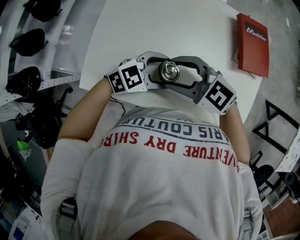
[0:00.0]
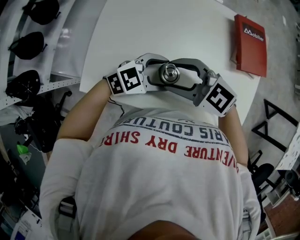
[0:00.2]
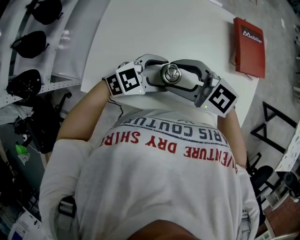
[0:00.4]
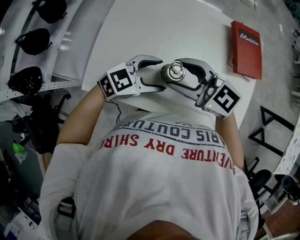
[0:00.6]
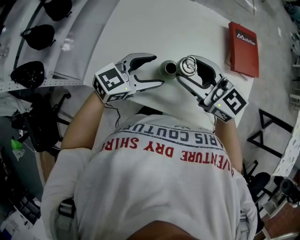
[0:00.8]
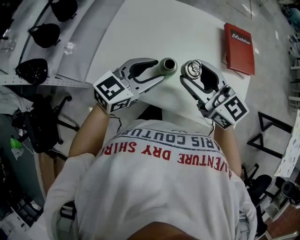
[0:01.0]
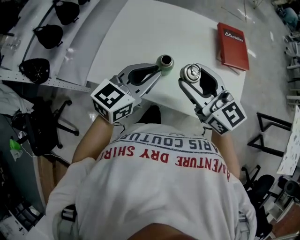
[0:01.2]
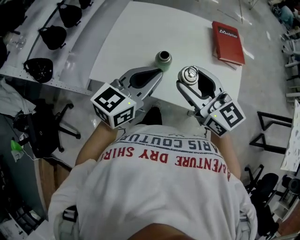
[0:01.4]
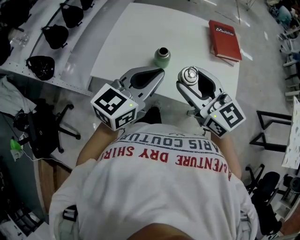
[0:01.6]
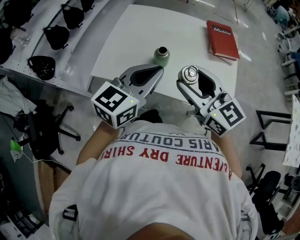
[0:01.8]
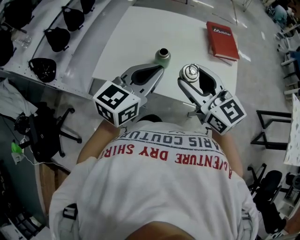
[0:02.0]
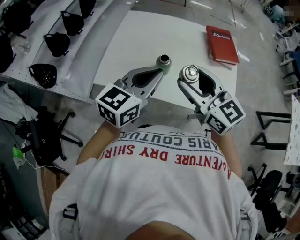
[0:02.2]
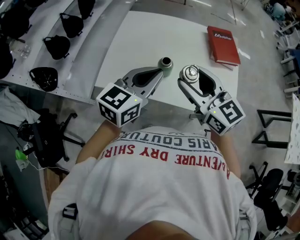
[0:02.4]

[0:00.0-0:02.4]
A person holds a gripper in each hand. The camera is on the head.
0:00.0 to 0:01.2: Both grippers travel together upward, approximately 15 cm. The right gripper turns by roughly 40 degrees; the left gripper changes its angle by some 40 degrees, and closes its fingers.
0:01.2 to 0:02.4: The left gripper moves upward, approximately 5 cm; the right gripper changes place by some 5 cm.

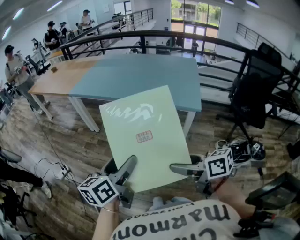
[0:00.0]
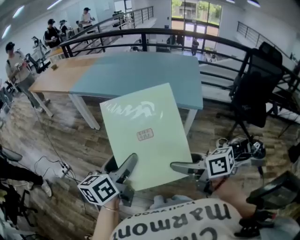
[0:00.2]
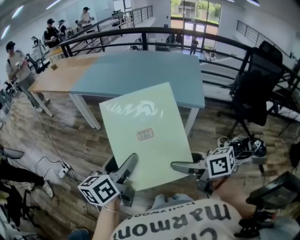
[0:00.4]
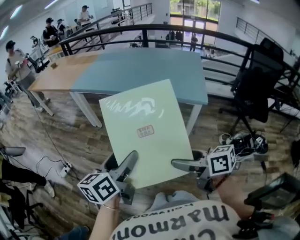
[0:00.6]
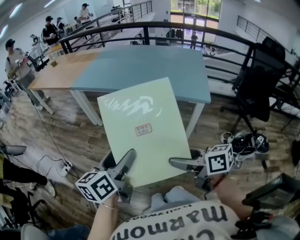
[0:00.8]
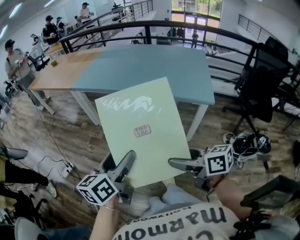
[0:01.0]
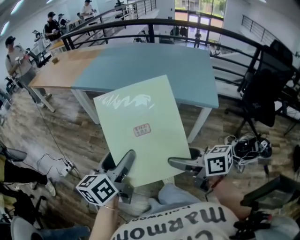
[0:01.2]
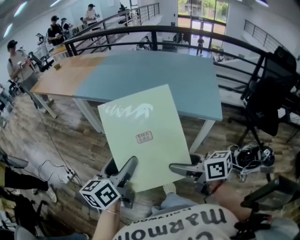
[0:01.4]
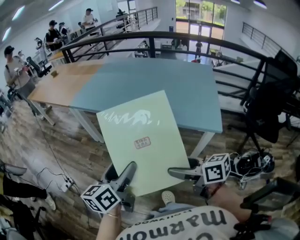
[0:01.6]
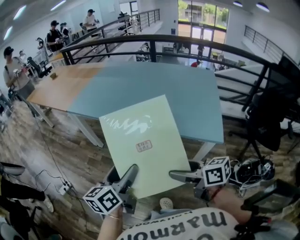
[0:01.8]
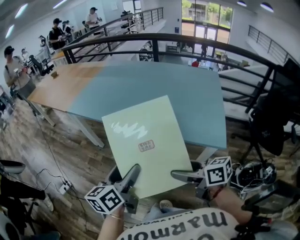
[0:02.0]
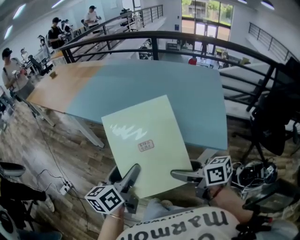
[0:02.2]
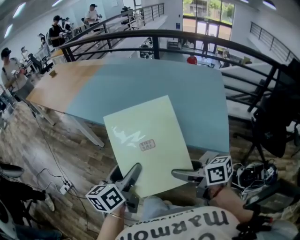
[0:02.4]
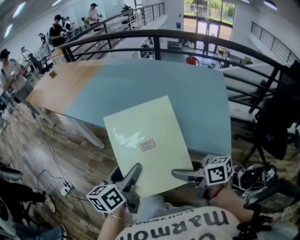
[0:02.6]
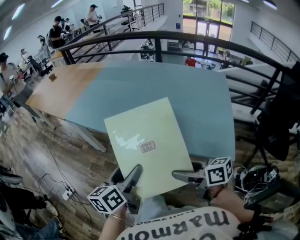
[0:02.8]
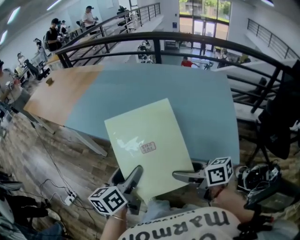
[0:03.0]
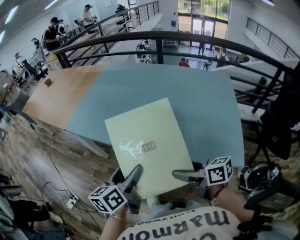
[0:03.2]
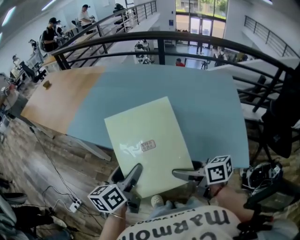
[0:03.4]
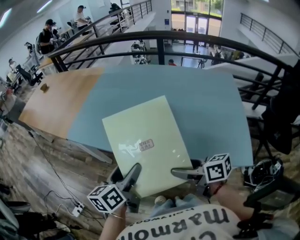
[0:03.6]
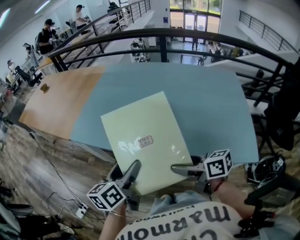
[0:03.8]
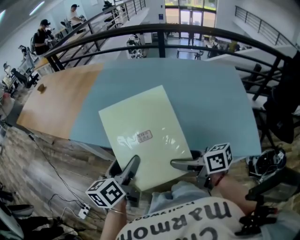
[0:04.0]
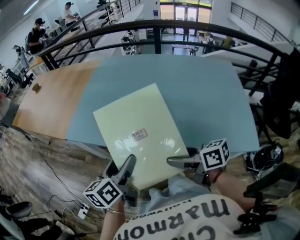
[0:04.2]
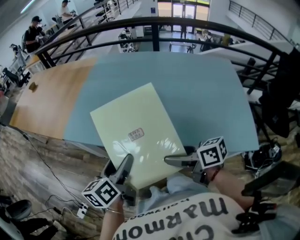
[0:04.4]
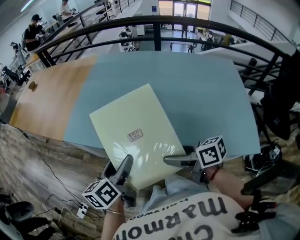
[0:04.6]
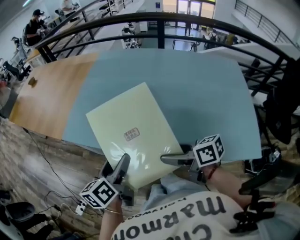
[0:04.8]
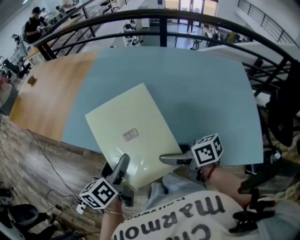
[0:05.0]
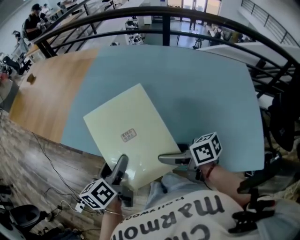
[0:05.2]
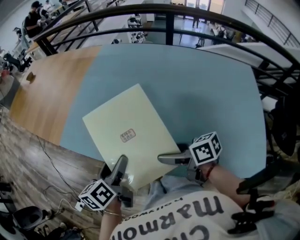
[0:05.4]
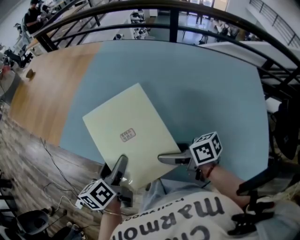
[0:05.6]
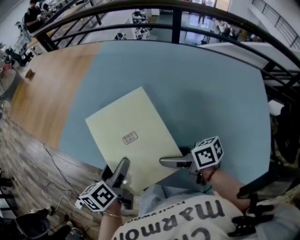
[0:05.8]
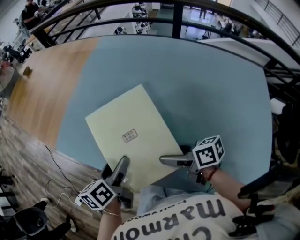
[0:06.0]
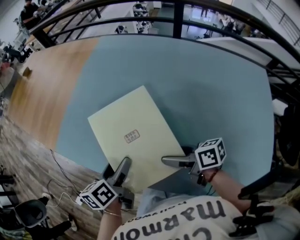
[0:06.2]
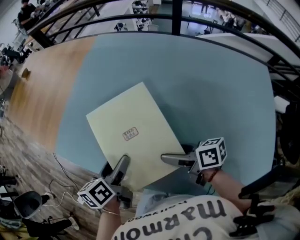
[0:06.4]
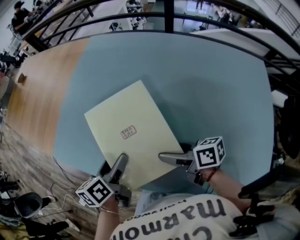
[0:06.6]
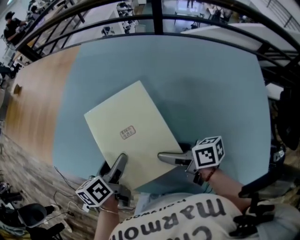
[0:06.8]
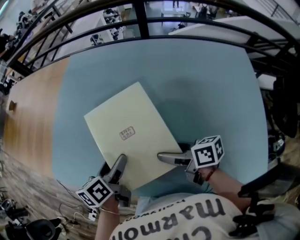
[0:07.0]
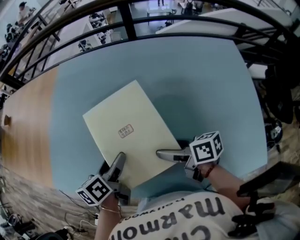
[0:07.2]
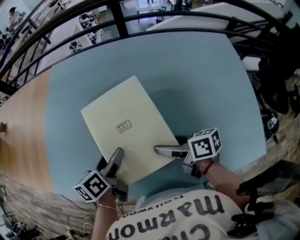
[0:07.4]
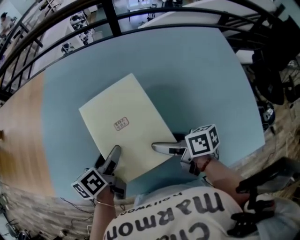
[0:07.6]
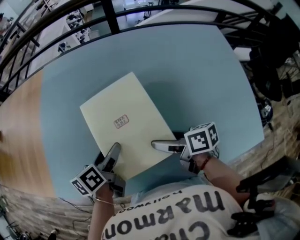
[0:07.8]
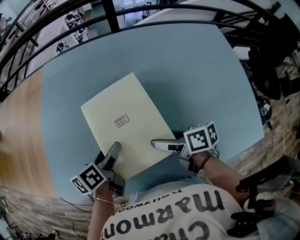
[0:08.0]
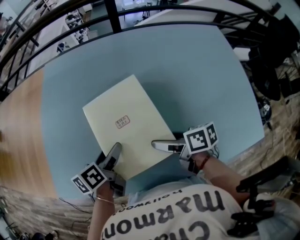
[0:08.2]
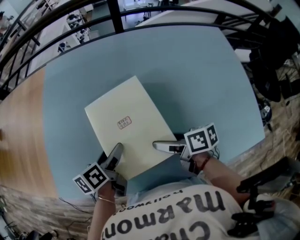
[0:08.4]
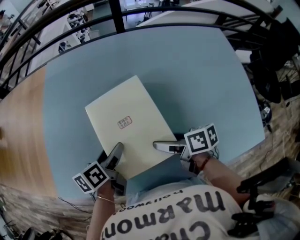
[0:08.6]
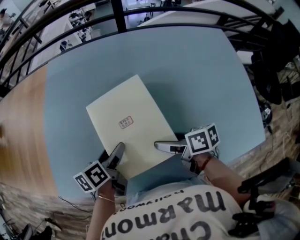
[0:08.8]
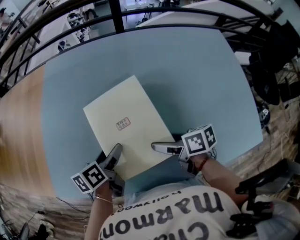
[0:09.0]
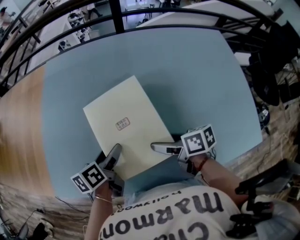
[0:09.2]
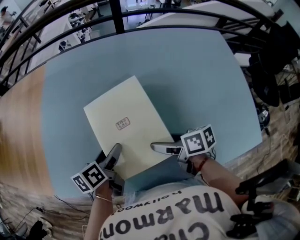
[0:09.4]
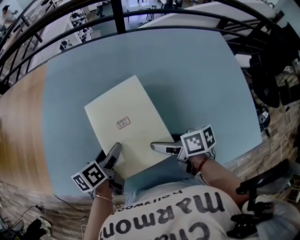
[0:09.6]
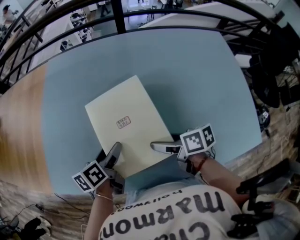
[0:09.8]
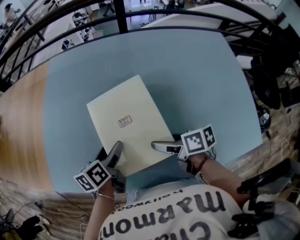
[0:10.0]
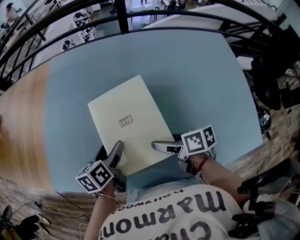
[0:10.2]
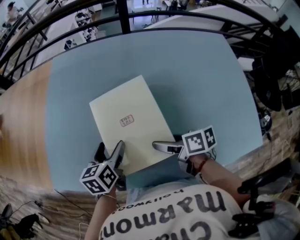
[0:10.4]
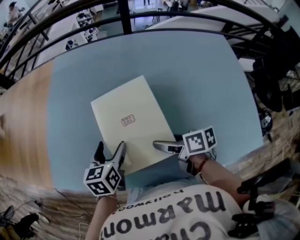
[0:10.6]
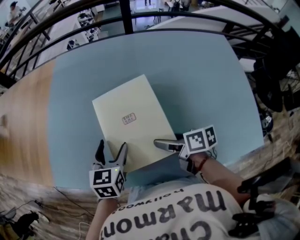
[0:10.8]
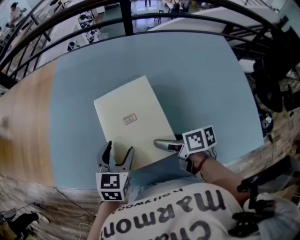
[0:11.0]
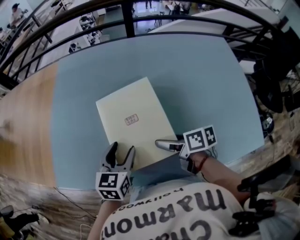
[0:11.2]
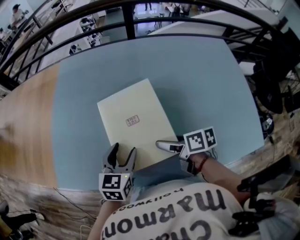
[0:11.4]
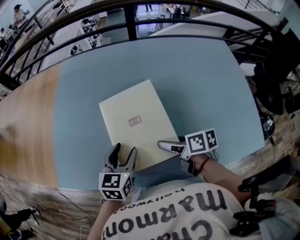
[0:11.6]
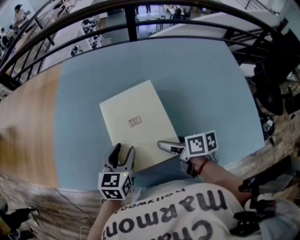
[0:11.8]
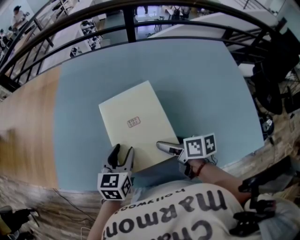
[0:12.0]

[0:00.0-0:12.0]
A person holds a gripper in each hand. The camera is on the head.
0:00.0 to 0:01.6: Both grippers travel together forward, about 20 cm.
0:01.6 to 0:03.0: Both grippers travel together forward, some 20 cm.
0:03.0 to 0:04.4: The two grippers go approximately 20 cm forward and to the left.
0:04.4 to 0:06.0: Both grippers travel together forward and downward, roughly 20 cm.
0:06.0 to 0:07.6: The left gripper moves roughly 10 cm, and changes its angle by roughly 30 degrees, while the right gripper moves some 5 cm, and rotates roughly 30 degrees.
0:07.6 to 0:09.0: The grippers stay close to where they were, moving slightly.
0:09.0 to 0:10.4: The left gripper swivels roughly 20 degrees.
0:10.4 to 0:12.0: The left gripper turns by some 20 degrees, and closes.

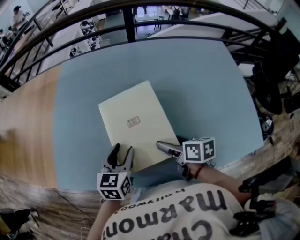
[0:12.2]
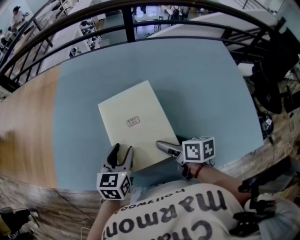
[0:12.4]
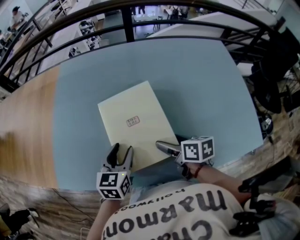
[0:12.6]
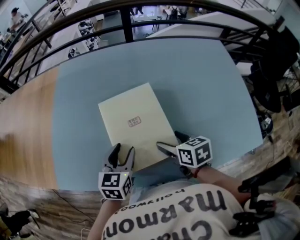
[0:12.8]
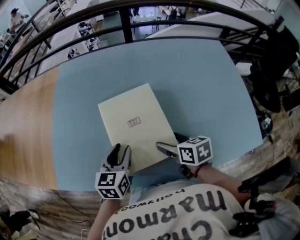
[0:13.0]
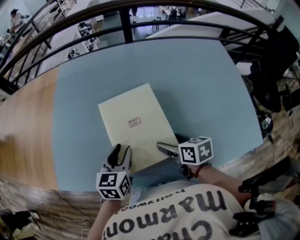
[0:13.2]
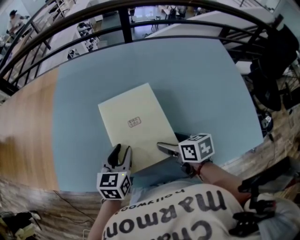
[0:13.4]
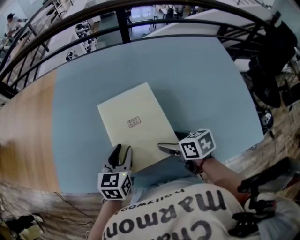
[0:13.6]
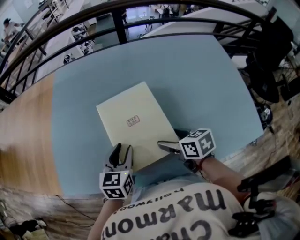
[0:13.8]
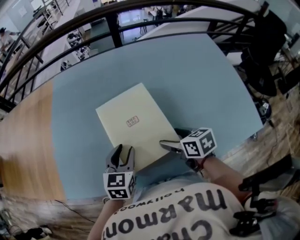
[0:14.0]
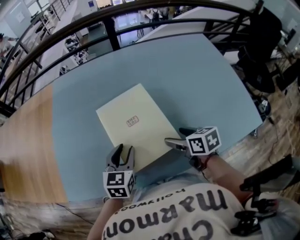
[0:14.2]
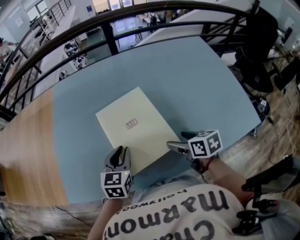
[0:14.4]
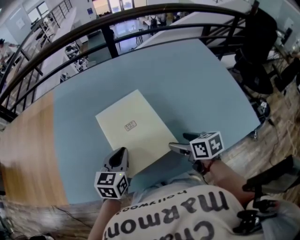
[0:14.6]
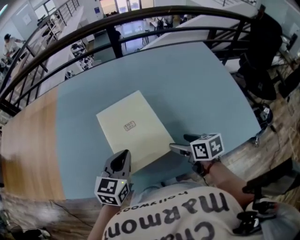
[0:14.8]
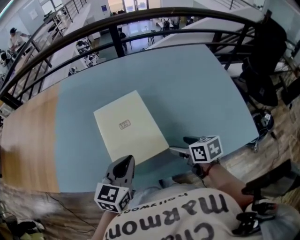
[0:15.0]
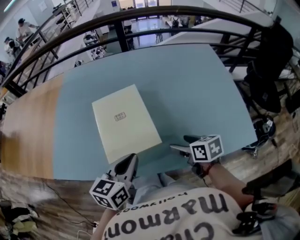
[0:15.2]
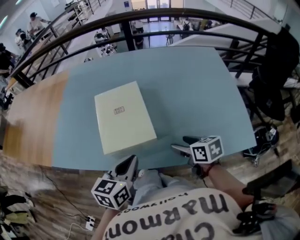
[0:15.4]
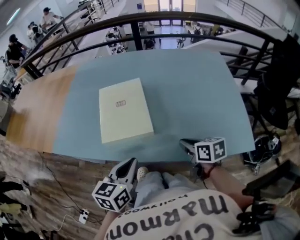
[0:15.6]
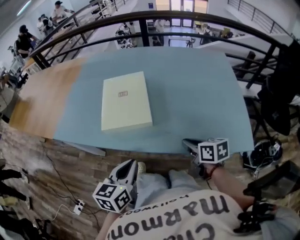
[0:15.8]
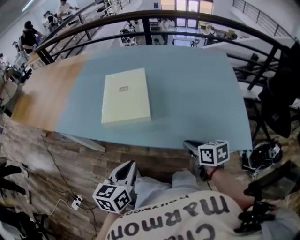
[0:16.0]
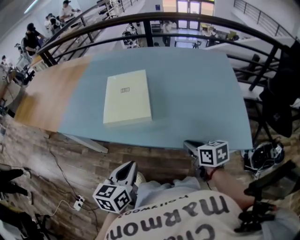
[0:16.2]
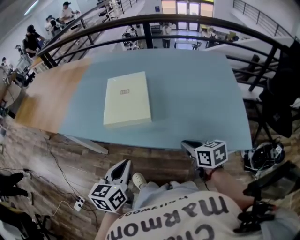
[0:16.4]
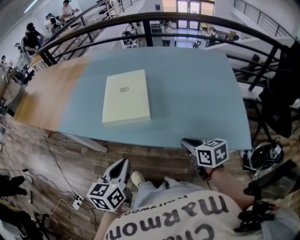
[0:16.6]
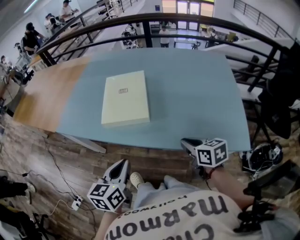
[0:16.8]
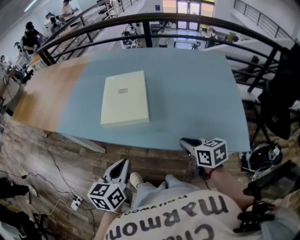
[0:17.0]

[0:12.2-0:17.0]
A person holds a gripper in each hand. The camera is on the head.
0:13.8 to 0:15.4: The right gripper heads to the right and backward, covering roughly 15 cm, while the left gripper goes roughly 20 cm backward and to the right, and closes its fingers.
0:15.4 to 0:17.0: The right gripper heads backward, covering about 10 cm, and closes its fingers; the left gripper shifts some 15 cm backward.

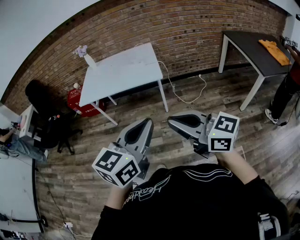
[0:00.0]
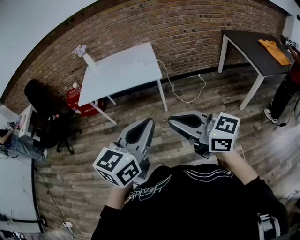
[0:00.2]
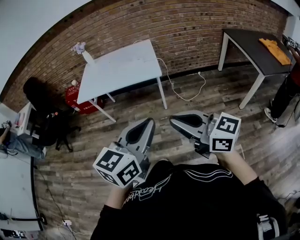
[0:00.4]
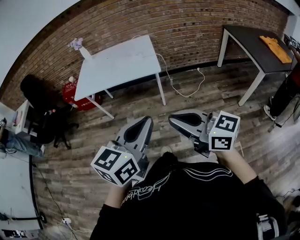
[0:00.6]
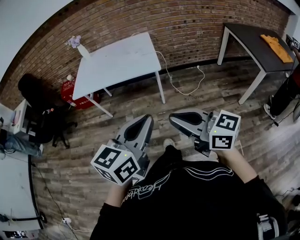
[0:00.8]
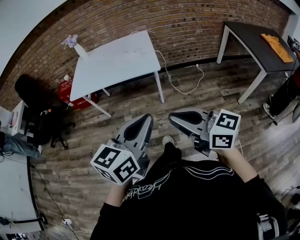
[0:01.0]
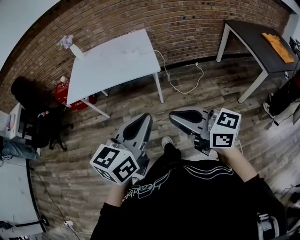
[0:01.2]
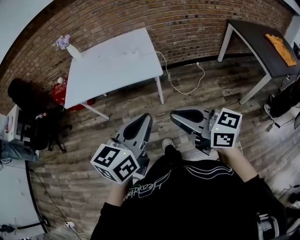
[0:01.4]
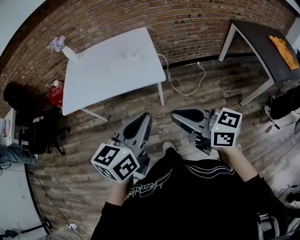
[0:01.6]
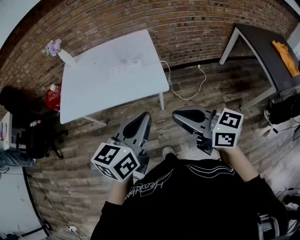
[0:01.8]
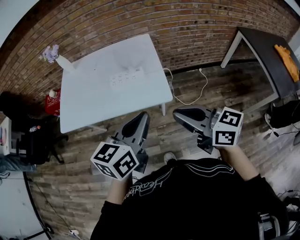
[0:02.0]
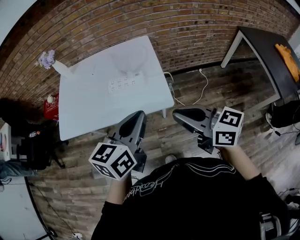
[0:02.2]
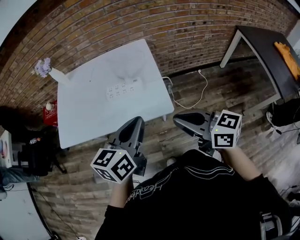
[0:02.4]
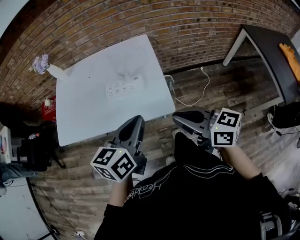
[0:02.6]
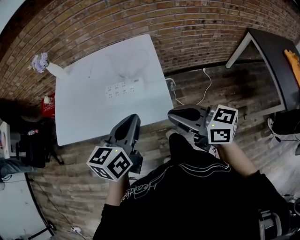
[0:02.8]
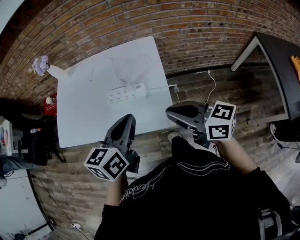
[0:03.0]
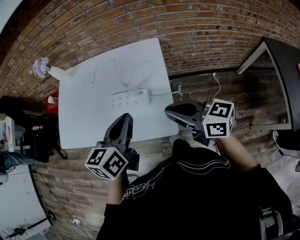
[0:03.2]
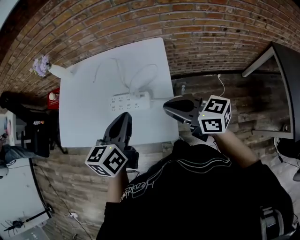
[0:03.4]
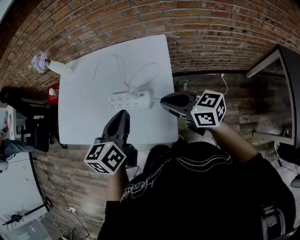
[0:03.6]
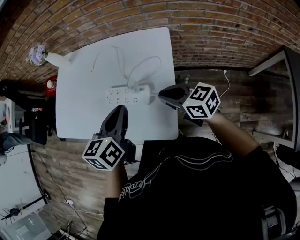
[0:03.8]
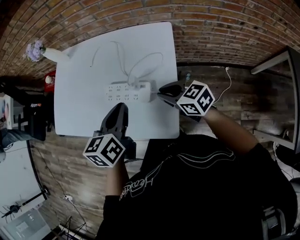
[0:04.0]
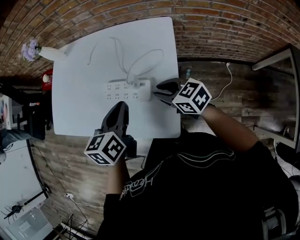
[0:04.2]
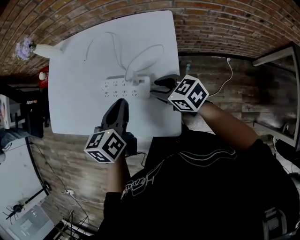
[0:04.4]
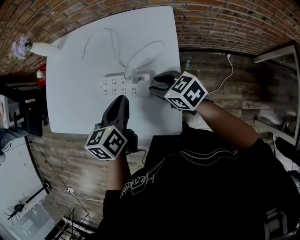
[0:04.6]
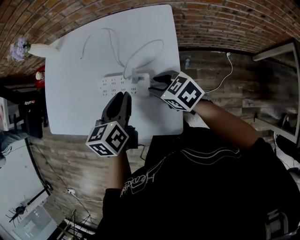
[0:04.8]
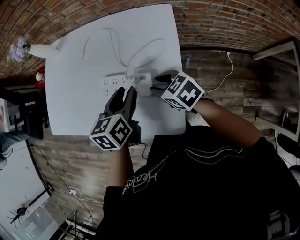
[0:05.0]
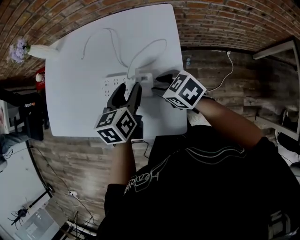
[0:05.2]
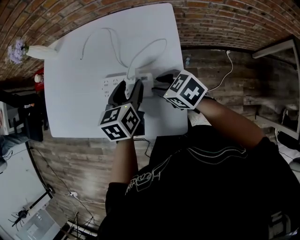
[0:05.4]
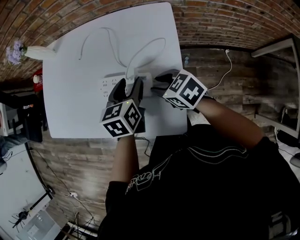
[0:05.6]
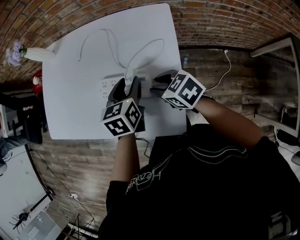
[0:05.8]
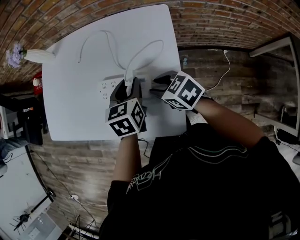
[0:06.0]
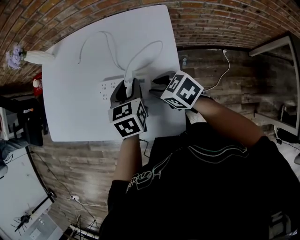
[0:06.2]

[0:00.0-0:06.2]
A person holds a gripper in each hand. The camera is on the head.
0:00.0 to 0:01.6: The two grippers go about 25 cm forward.
0:01.6 to 0:03.2: The grippers both shift forward by about 40 cm.
0:03.2 to 0:04.6: Both grippers travel together downward and forward, some 20 cm. The right gripper changes its angle by some 30 degrees, and opens up.
0:04.6 to 0:06.2: The left gripper changes place by some 10 cm, swivels about 20 degrees, and opens.
